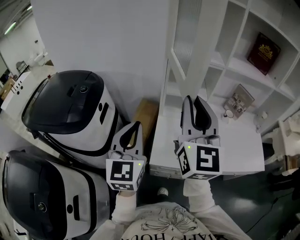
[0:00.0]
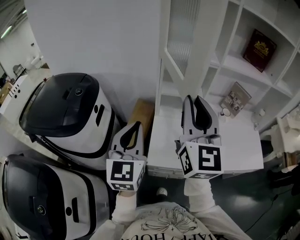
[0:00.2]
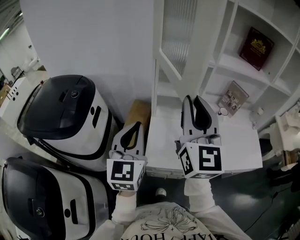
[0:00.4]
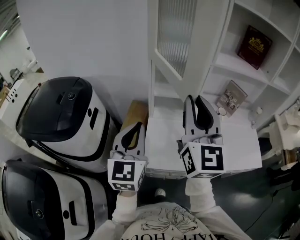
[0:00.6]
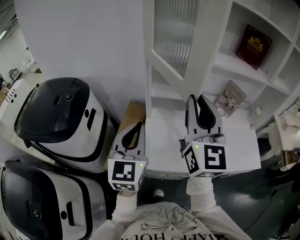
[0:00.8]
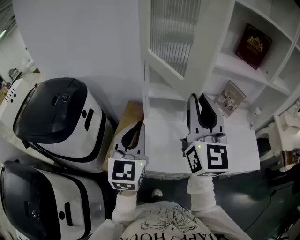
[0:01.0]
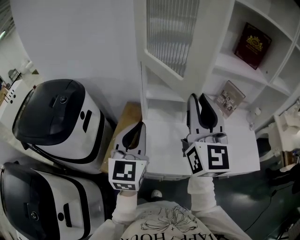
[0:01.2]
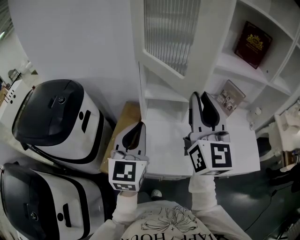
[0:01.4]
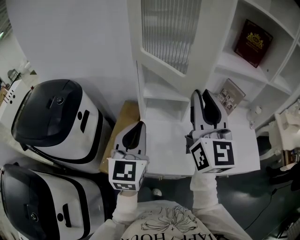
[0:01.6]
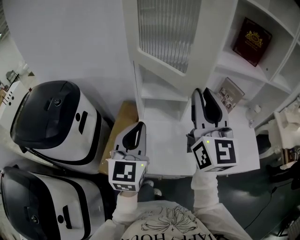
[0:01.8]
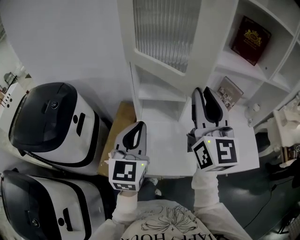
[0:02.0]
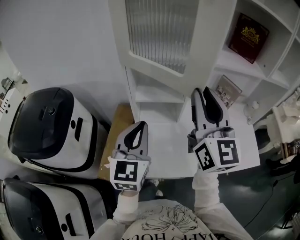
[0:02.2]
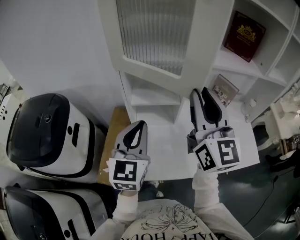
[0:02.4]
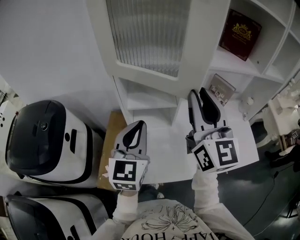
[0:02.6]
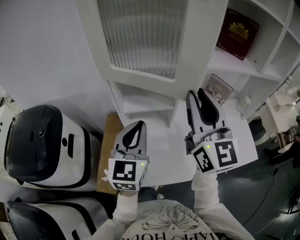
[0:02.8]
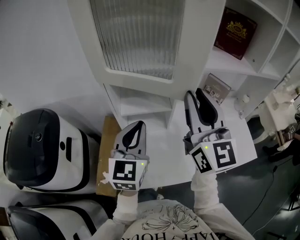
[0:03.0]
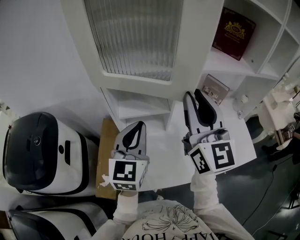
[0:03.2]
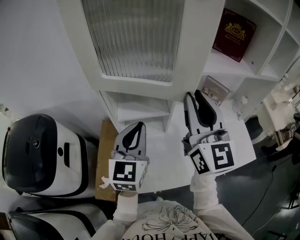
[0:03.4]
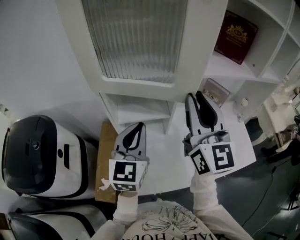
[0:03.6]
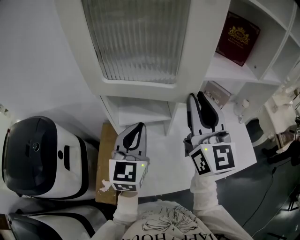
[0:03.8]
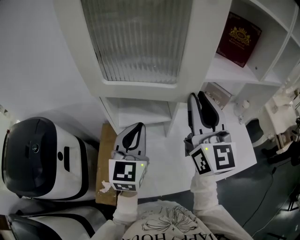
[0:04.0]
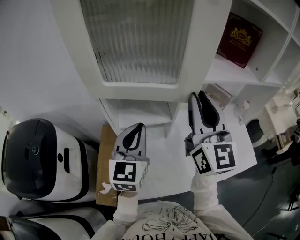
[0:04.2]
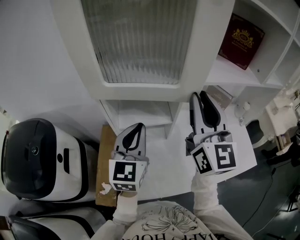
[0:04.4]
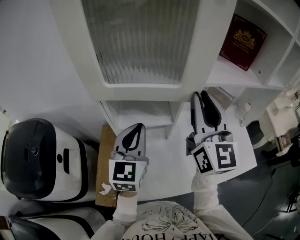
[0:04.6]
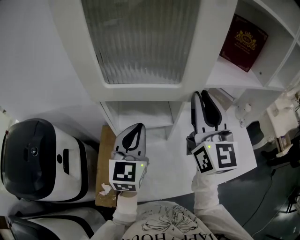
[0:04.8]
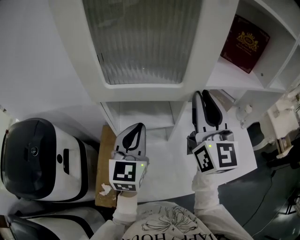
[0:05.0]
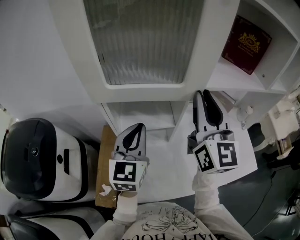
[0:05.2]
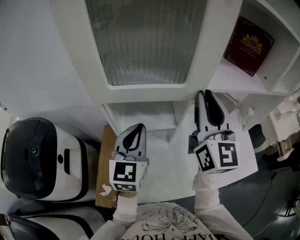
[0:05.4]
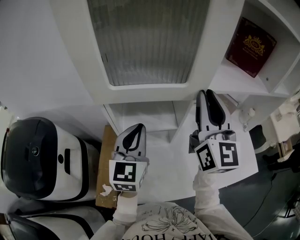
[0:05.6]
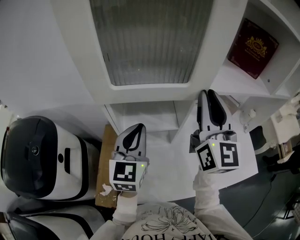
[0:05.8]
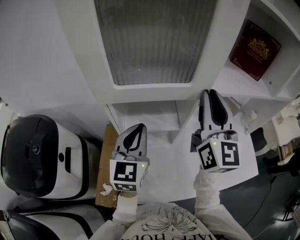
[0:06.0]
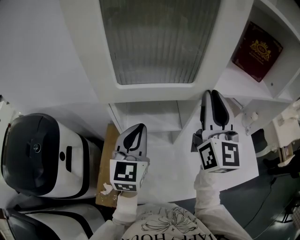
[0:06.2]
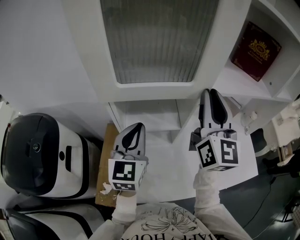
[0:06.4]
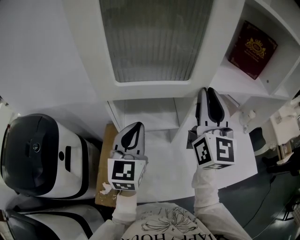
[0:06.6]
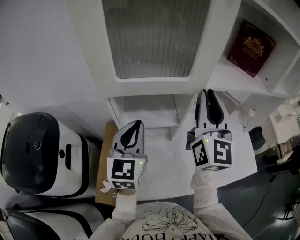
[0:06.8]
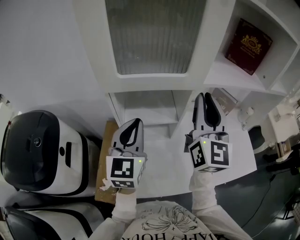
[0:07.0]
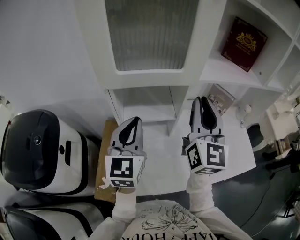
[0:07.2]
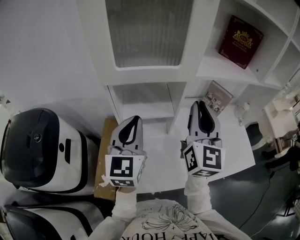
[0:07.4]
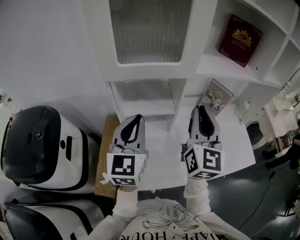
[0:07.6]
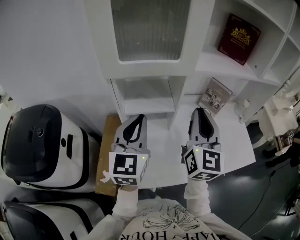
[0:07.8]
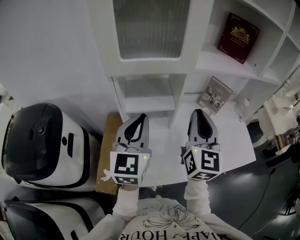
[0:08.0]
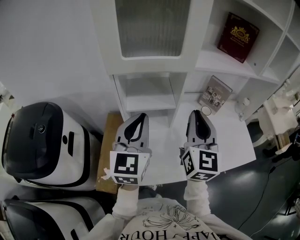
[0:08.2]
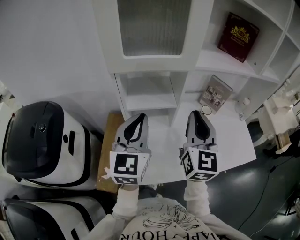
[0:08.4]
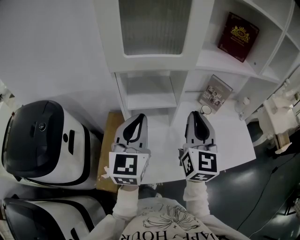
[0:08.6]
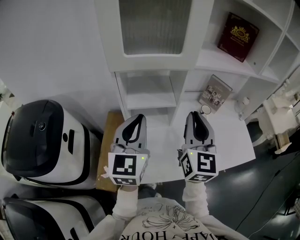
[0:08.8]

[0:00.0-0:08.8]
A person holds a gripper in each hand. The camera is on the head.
0.0 to 1.4 s: The grippers both shift to the right and forward by approximately 15 cm.
1.4 to 3.0 s: The grippers both shift forward and to the right by about 10 cm.
3.0 to 4.4 s: Both grippers move forward, roughly 5 cm.
4.4 to 5.8 s: The grippers stay close to where they were, moving slightly.
5.8 to 7.4 s: Both grippers move backward, about 5 cm.
7.4 to 8.8 s: Both grippers travel together backward, some 5 cm.

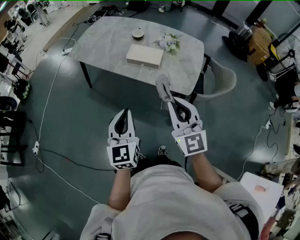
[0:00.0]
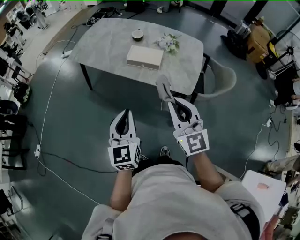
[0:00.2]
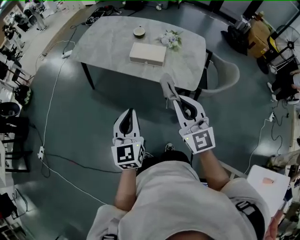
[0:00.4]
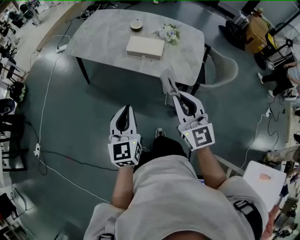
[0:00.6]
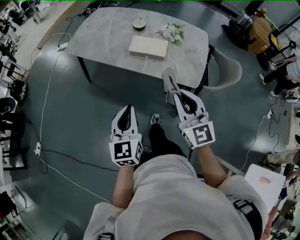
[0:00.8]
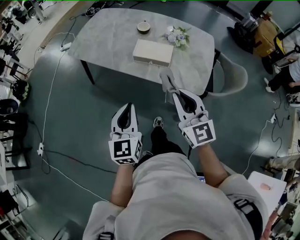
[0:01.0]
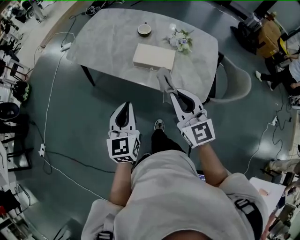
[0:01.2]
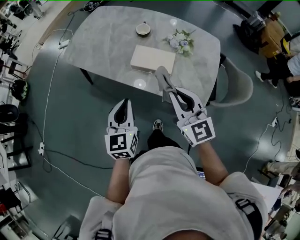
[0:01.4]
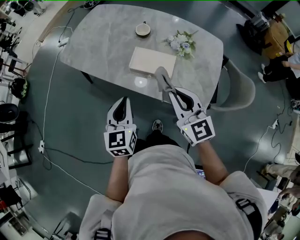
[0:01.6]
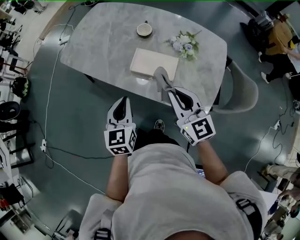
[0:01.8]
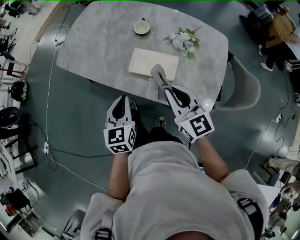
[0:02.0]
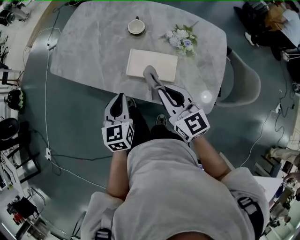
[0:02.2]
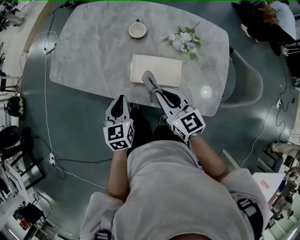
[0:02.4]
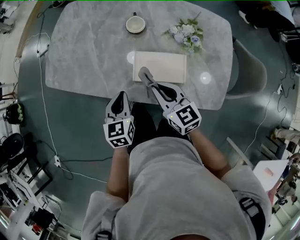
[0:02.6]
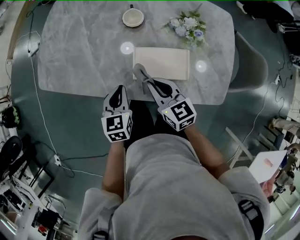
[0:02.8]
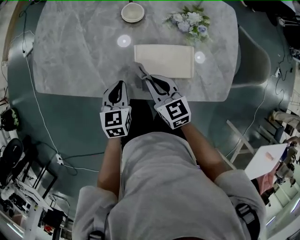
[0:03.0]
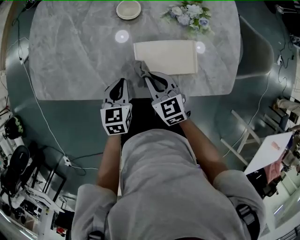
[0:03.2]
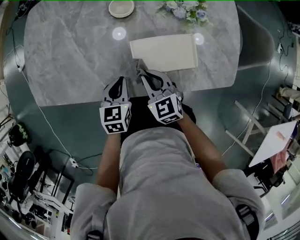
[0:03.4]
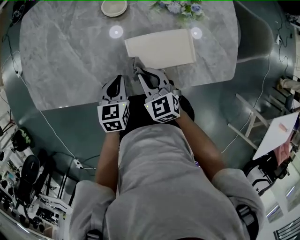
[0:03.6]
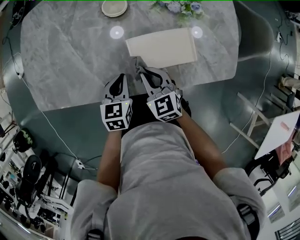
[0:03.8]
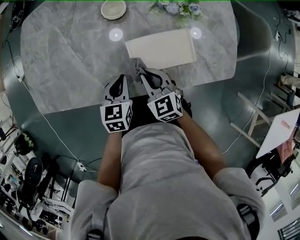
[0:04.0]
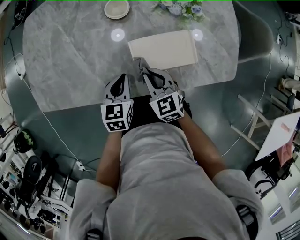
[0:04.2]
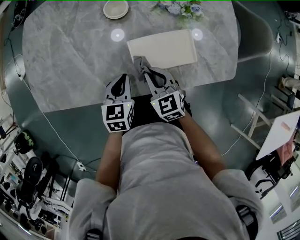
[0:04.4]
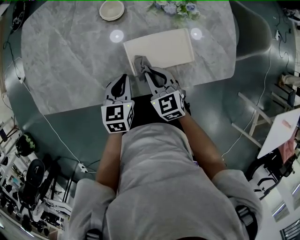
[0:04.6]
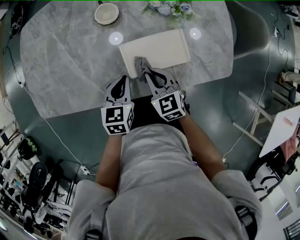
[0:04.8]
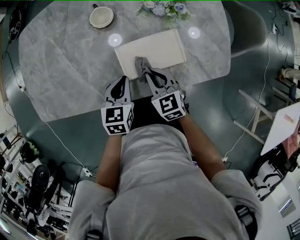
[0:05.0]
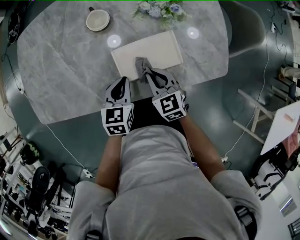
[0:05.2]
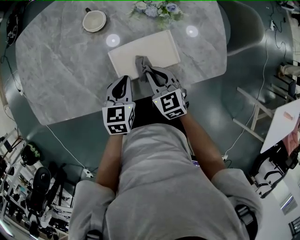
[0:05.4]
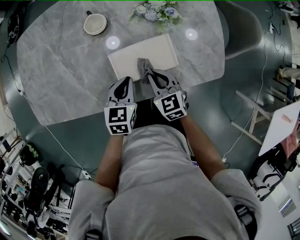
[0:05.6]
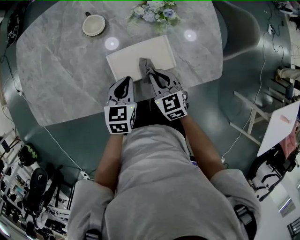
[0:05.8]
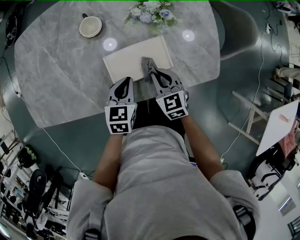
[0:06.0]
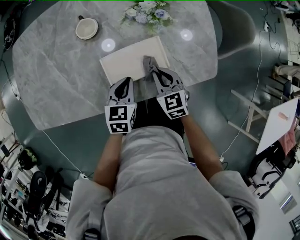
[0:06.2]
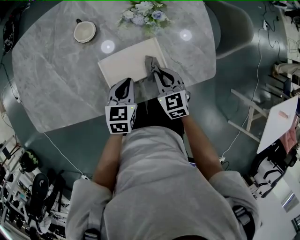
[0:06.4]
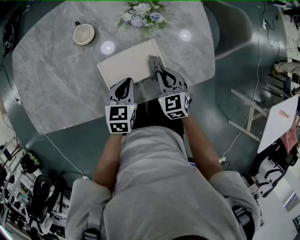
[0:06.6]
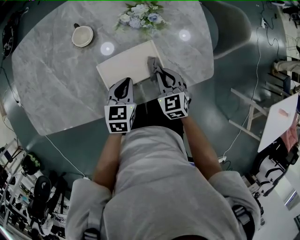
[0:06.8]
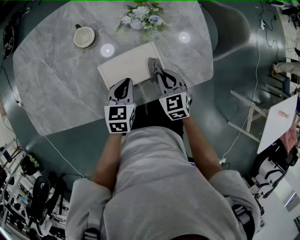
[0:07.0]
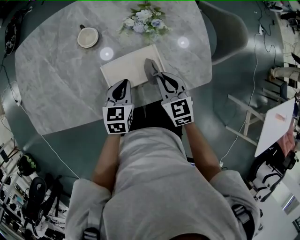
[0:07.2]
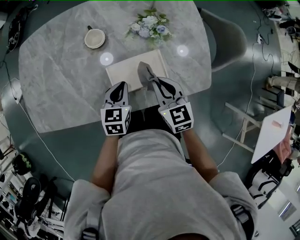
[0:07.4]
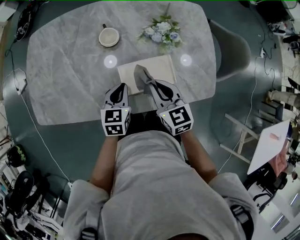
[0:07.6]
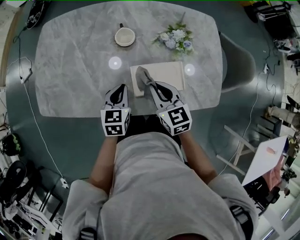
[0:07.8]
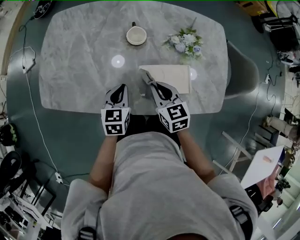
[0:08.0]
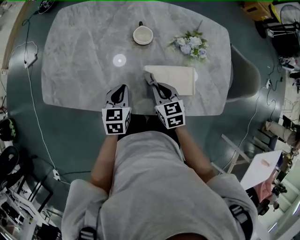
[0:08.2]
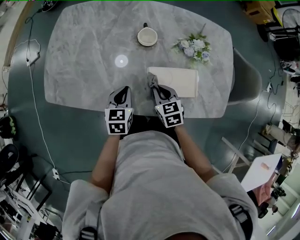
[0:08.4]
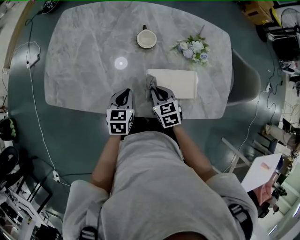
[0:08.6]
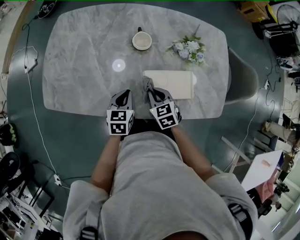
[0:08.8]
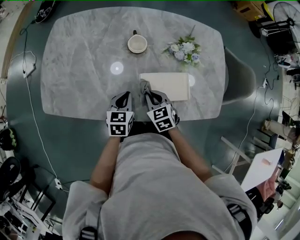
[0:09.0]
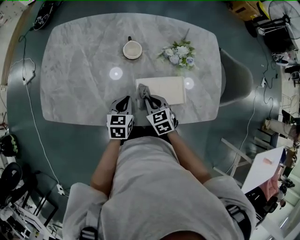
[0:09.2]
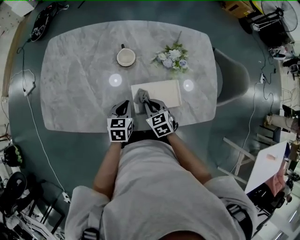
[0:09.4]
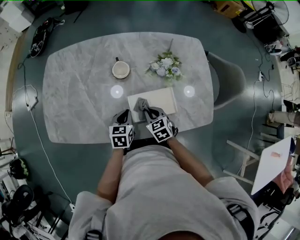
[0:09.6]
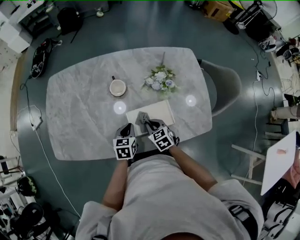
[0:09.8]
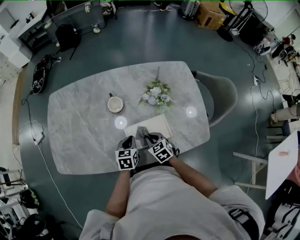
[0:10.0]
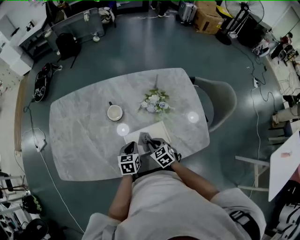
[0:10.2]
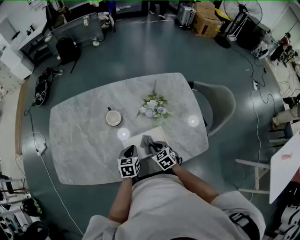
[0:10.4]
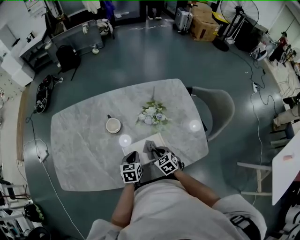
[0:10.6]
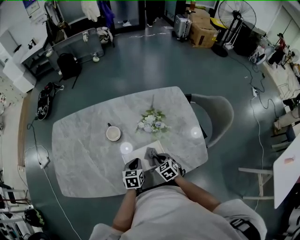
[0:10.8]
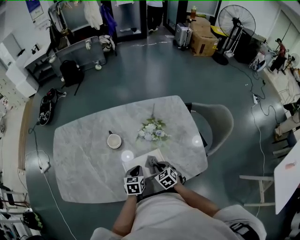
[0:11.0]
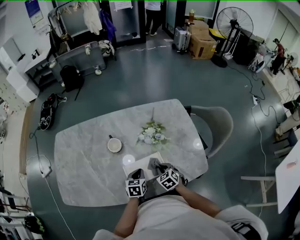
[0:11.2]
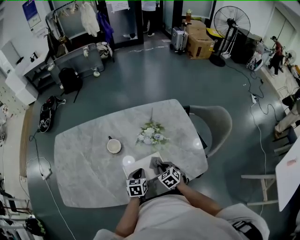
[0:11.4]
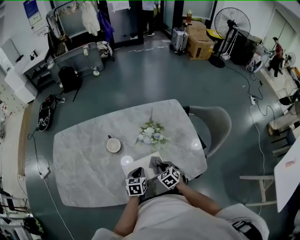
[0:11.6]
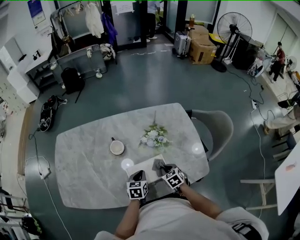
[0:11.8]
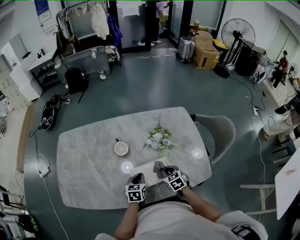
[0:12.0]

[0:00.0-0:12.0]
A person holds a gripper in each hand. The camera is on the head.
0.0 to 1.6 s: The two grippers go approximately 25 cm forward.
1.6 to 3.0 s: The right gripper is displaced downward, forward and to the left by some 30 cm, and rotates some 30 degrees. Meanwhile the left gripper goes approximately 30 cm forward and downward, and changes its angle by roughly 30 degrees.
3.0 to 4.4 s: The grippers move only a little.
4.4 to 6.0 s: The grippers both shift to the right by about 10 cm.
6.0 to 7.6 s: The right gripper is displaced upward by roughly 10 cm; the left gripper is displaced to the left by about 5 cm.
7.6 to 9.0 s: The left gripper shifts approximately 5 cm to the left; the right gripper moves downward and to the left, approximately 15 cm, and rotates approximately 20 degrees.
9.0 to 10.4 s: The two grippers go about 10 cm to the right.

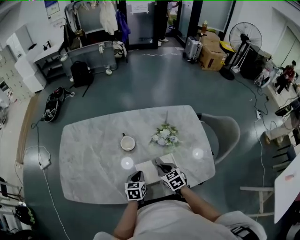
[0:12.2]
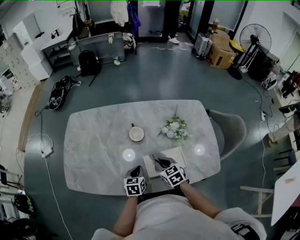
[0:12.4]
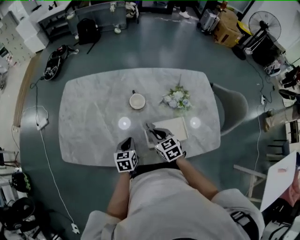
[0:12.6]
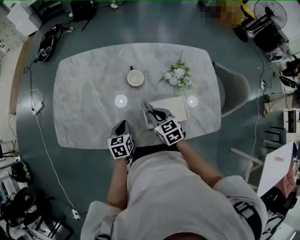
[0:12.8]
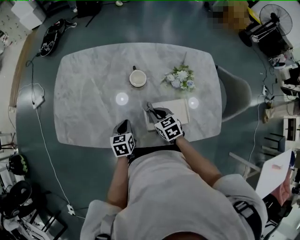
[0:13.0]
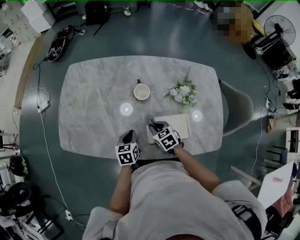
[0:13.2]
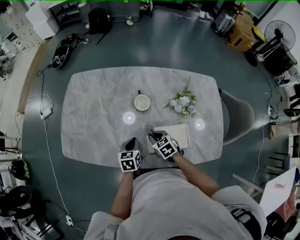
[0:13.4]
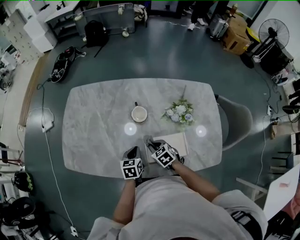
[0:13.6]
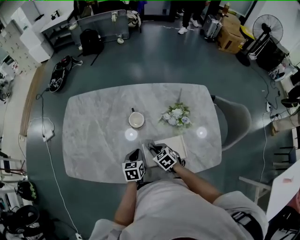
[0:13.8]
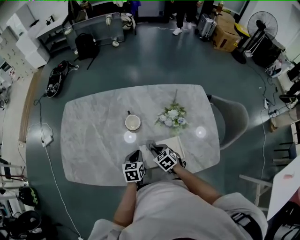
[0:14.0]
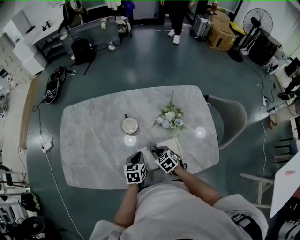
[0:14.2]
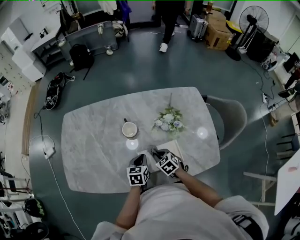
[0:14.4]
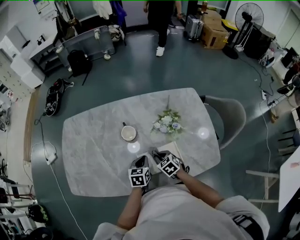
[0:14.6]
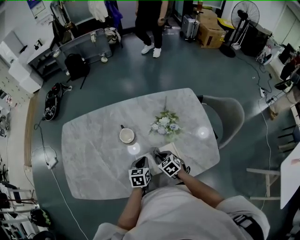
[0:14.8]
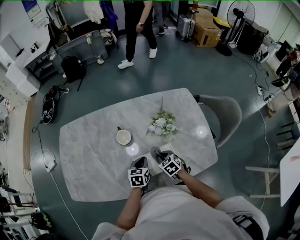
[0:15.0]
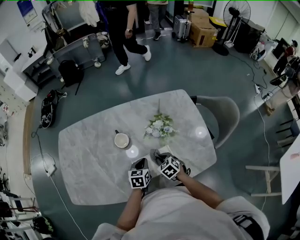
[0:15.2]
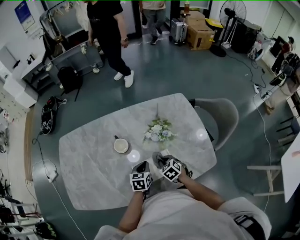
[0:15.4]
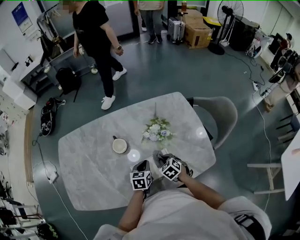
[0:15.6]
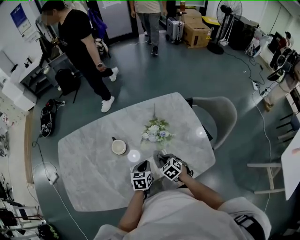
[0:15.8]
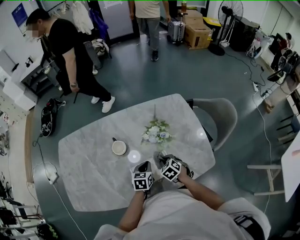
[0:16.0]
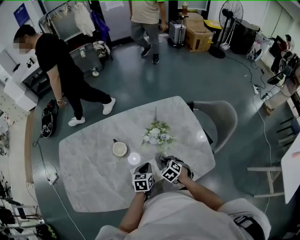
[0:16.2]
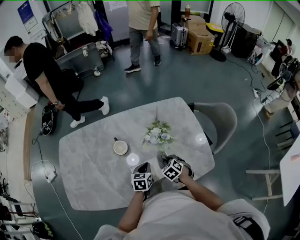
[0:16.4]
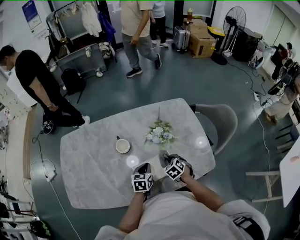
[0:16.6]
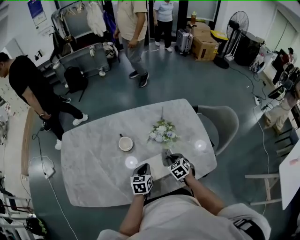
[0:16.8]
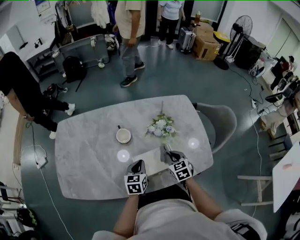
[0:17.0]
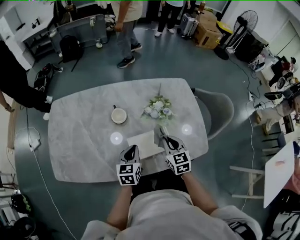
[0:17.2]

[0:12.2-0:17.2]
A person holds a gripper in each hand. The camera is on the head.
12.2 to 13.8 s: The left gripper shifts roughly 5 cm to the left. Meanwhile the right gripper travels to the left and downward by some 10 cm, and turns by roughly 20 degrees.
13.8 to 15.6 s: The two grippers go roughly 15 cm to the right.
15.6 to 17.2 s: The left gripper moves upward, to the left and backward, roughly 10 cm, while the right gripper shifts roughly 15 cm upward, and turns by roughly 30 degrees.
